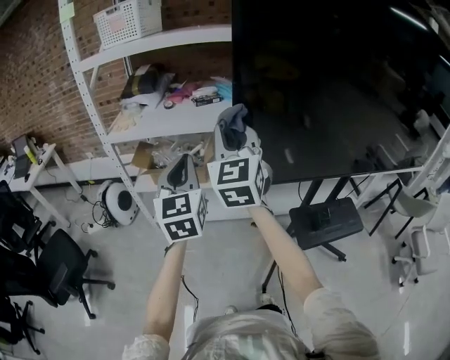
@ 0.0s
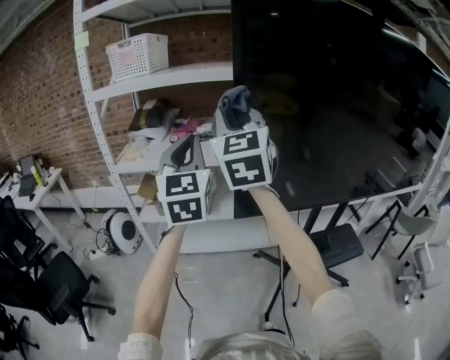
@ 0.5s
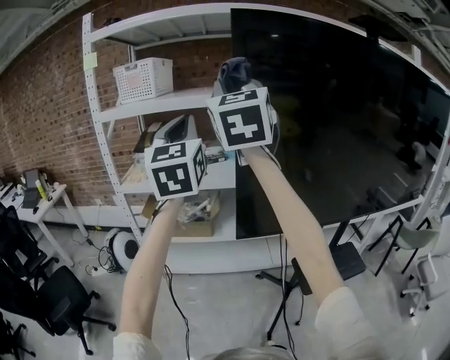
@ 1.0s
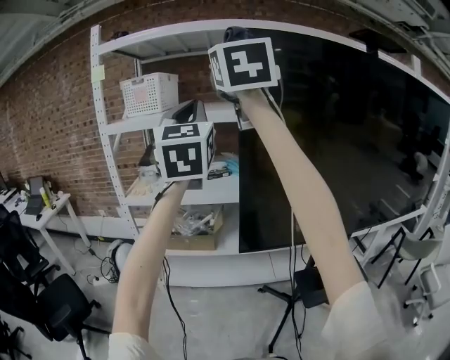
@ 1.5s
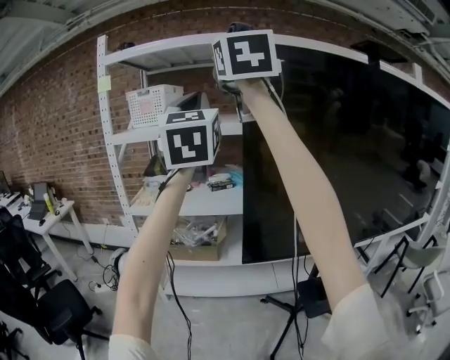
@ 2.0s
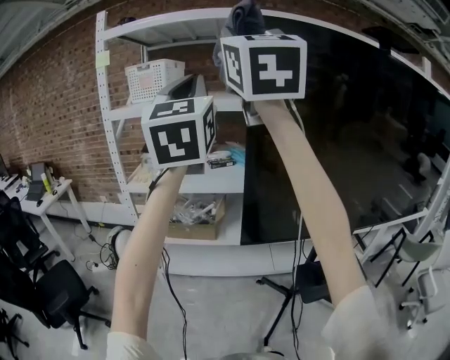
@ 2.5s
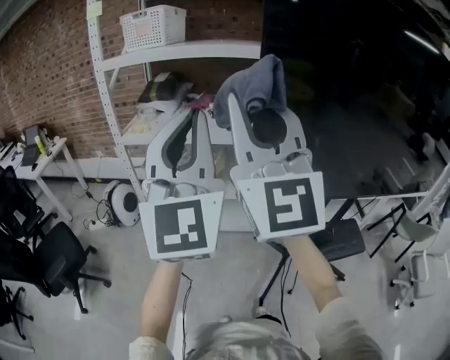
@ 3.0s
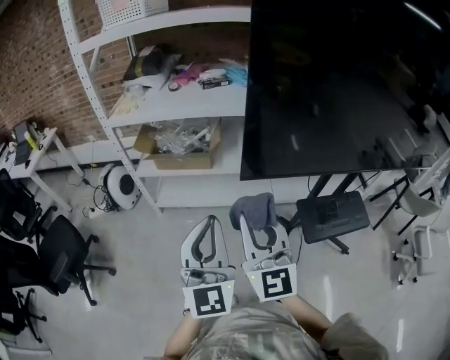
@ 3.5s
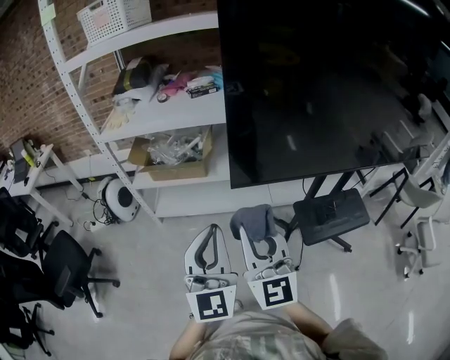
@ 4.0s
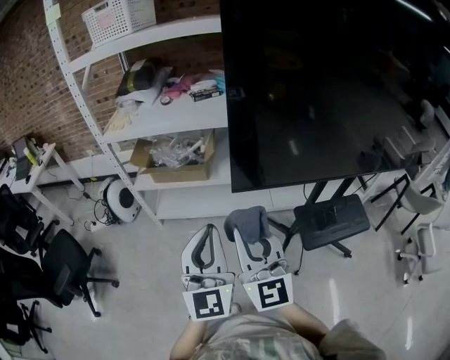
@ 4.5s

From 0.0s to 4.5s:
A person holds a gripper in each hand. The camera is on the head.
From 0.0s to 2.0s: Both grippers move upward, roughly 40 cm. The left gripper changes its angle by some 20 degrees.
From 2.0s to 4.5s: Both grippers move downward, approximately 50 cm.

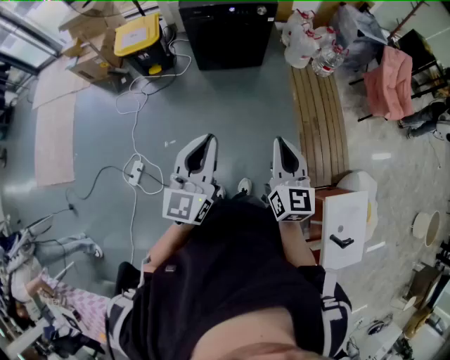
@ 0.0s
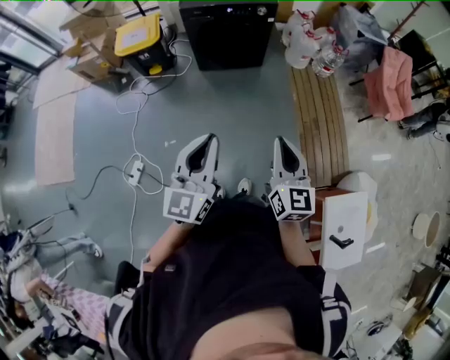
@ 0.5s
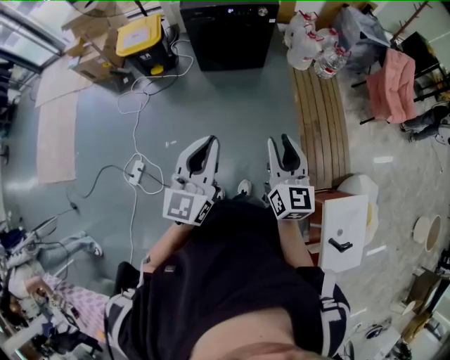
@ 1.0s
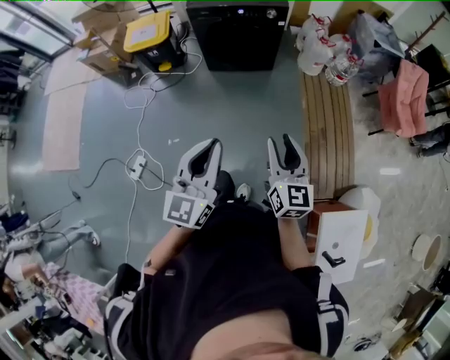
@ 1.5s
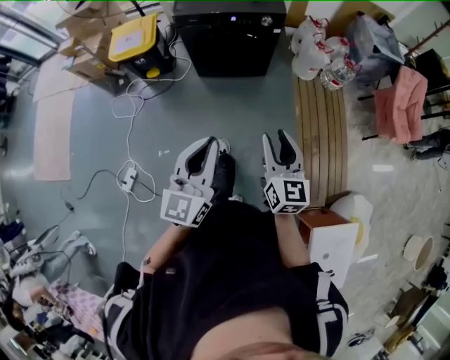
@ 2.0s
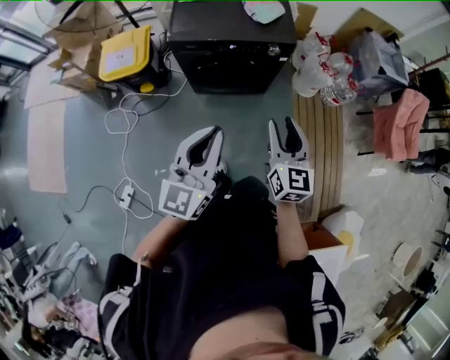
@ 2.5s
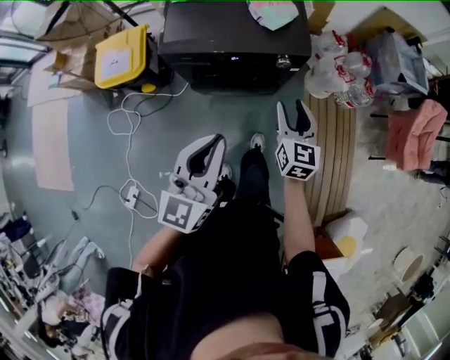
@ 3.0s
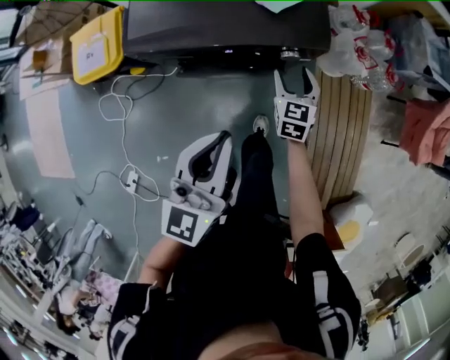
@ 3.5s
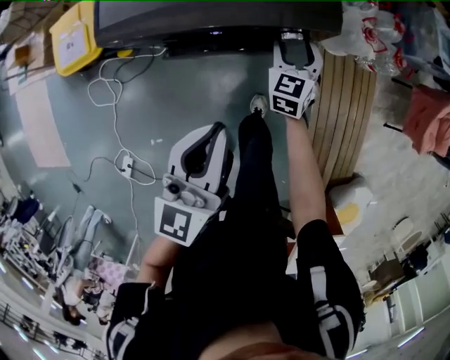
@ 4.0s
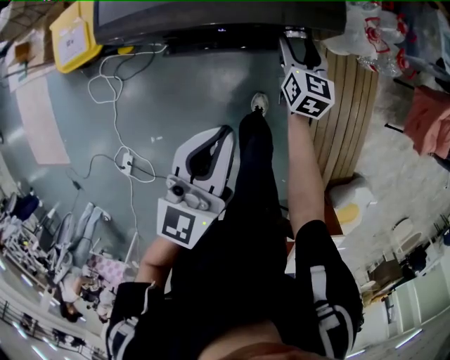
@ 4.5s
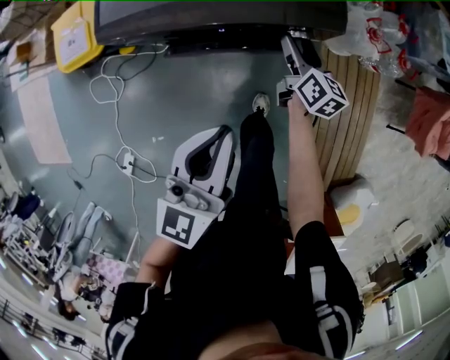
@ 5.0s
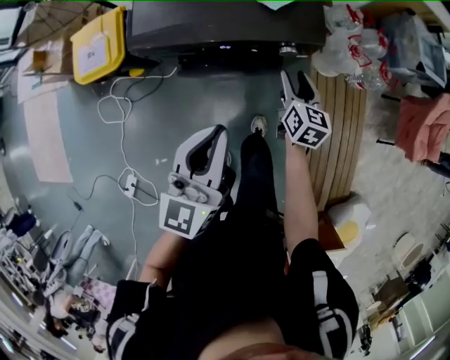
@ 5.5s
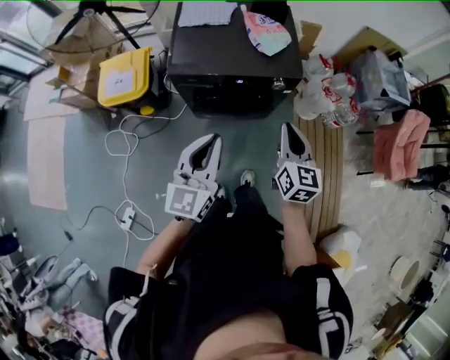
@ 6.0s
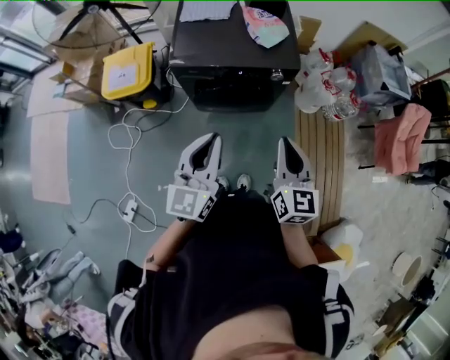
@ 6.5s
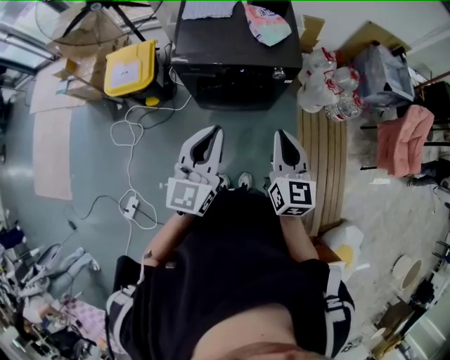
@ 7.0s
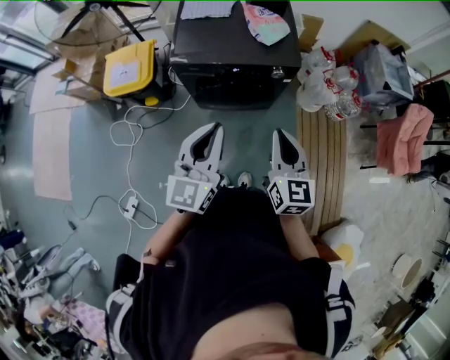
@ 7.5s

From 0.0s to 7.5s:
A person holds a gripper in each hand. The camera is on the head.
From 0.0s to 2.0s: Both grippers travel together forward, some 20 cm. The right gripper opens.
From 2.0s to 4.0s: Both grippers are carried forward, some 60 cm. The right gripper travels downward by some 35 cm, swivels some 30 degrees, and opens.
From 4.0s to 5.5s: The grippers both shift upward and backward by about 10 cm. The right gripper swivels about 30 degrees.
From 5.5s to 7.5s: The right gripper heads upward and backward, covering approximately 40 cm, rotates approximately 20 degrees, and closes its fingers. The left gripper heads backward and upward, covering roughly 20 cm.

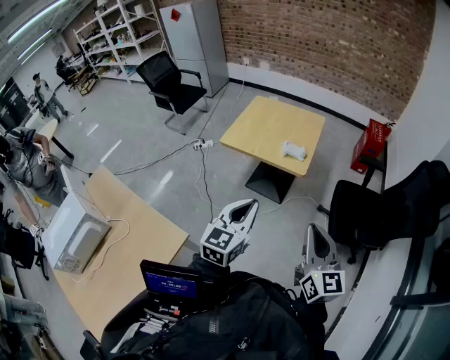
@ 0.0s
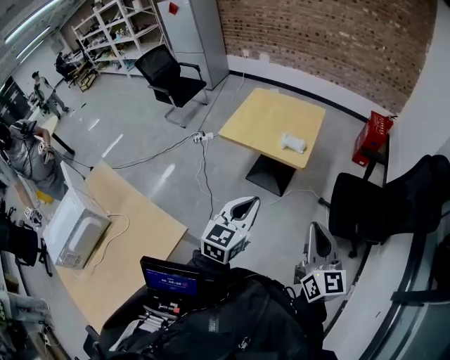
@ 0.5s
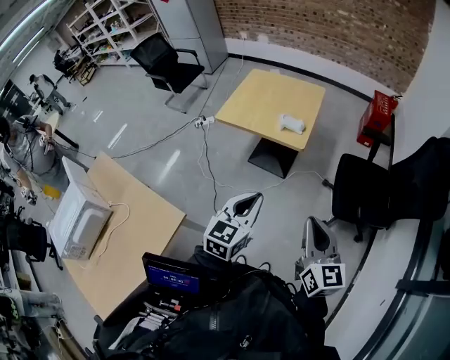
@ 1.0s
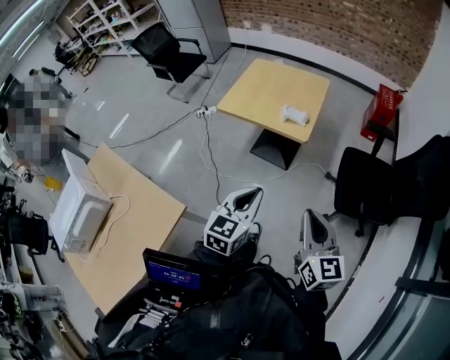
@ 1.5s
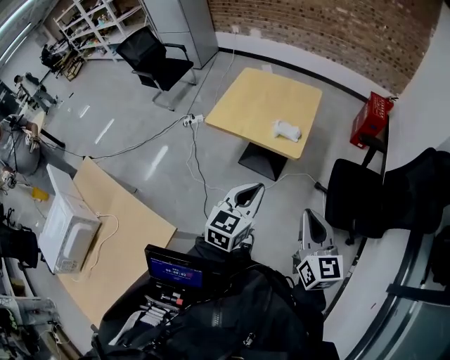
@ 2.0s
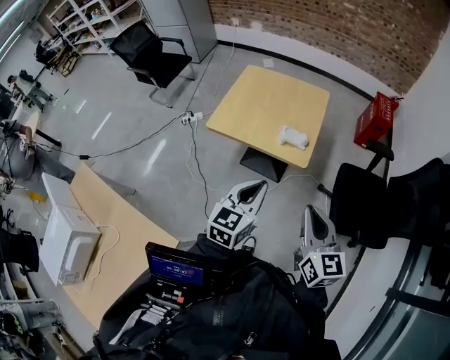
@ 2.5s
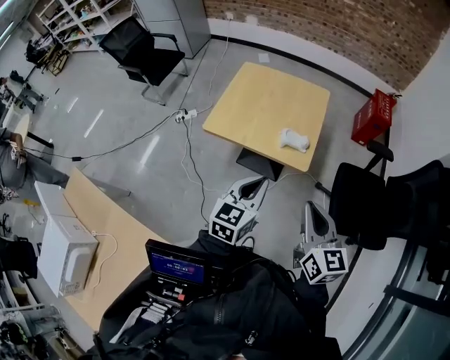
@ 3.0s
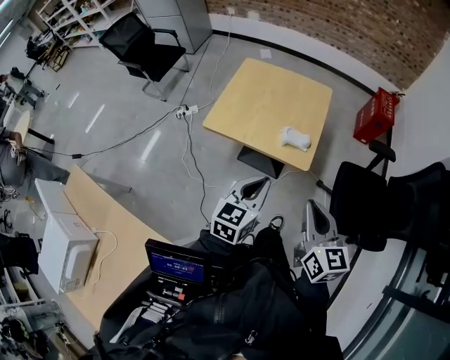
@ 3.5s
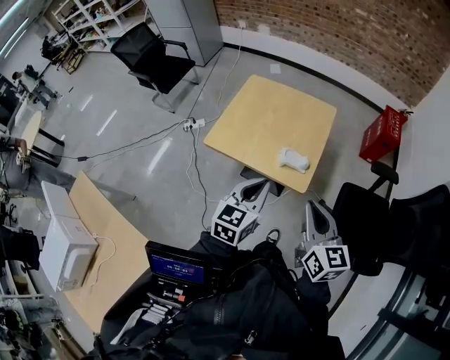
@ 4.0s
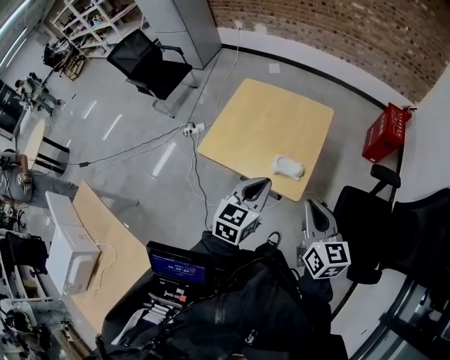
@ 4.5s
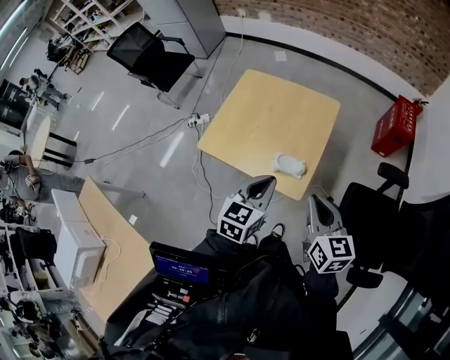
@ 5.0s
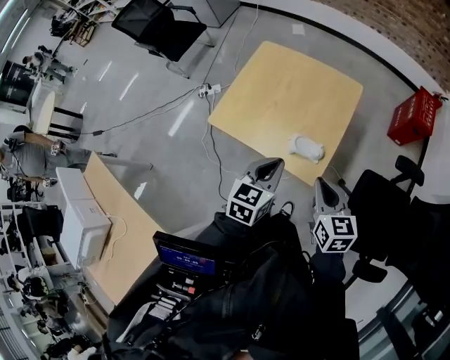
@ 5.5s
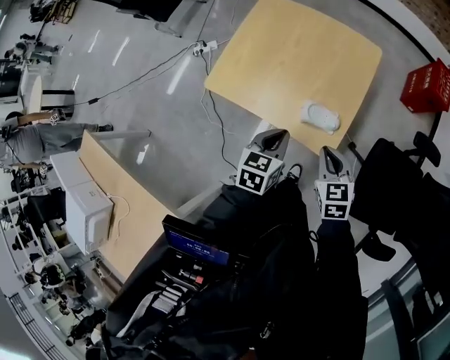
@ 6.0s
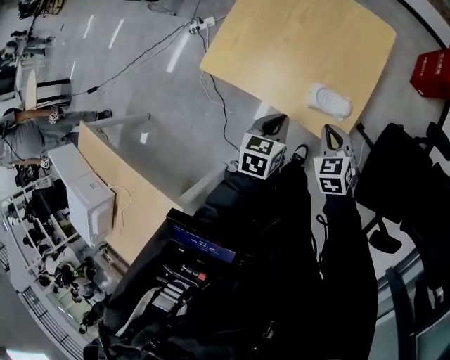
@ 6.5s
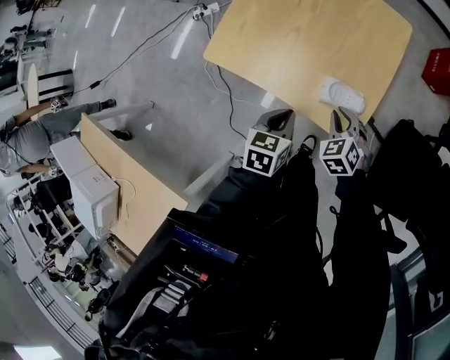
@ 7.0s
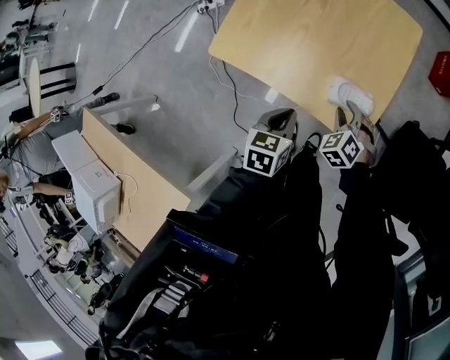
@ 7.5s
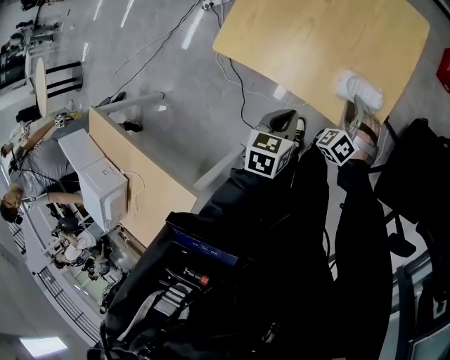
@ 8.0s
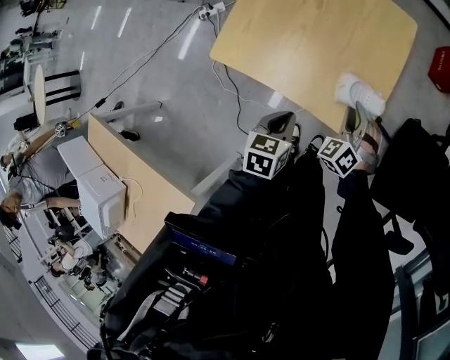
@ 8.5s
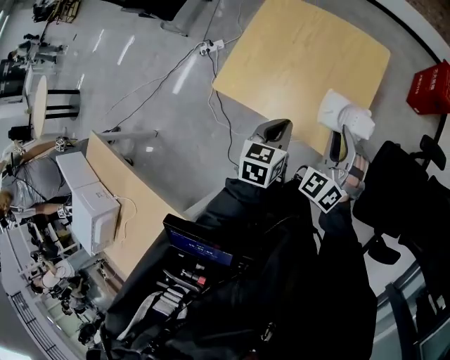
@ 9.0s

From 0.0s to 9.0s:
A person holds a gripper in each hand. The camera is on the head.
From 0.0s to 2.0s: The left gripper shifts about 10 cm forward and to the right. Meanwhile the right gripper travels forward by roughly 10 cm.
From 2.0s to 4.5s: The two grippers go about 30 cm forward.
From 4.5s to 7.0s: The left gripper heads downward, covering roughly 25 cm, and rotates roughly 30 degrees. Meanwhile the right gripper travels downward and forward by approximately 35 cm, and tilts its fingers some 40 degrees downward.
From 7.0s to 9.0s: The right gripper moves upward, some 20 cm, and angles its fingers upward, by roughly 30 degrees, while the left gripper moves upward, approximately 10 cm.

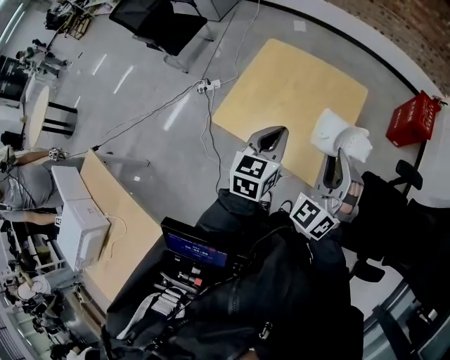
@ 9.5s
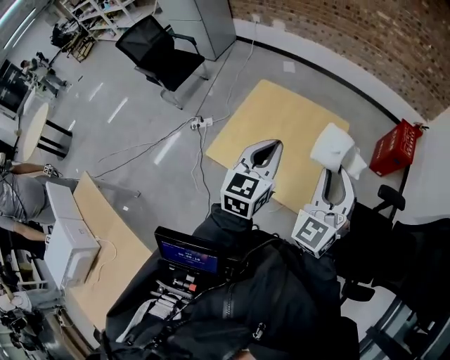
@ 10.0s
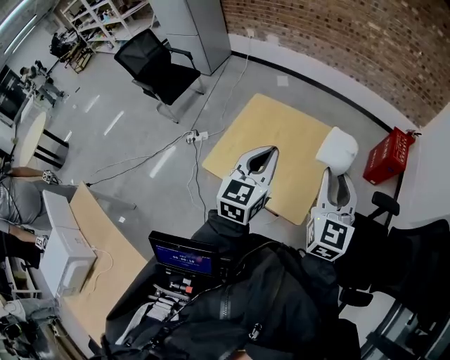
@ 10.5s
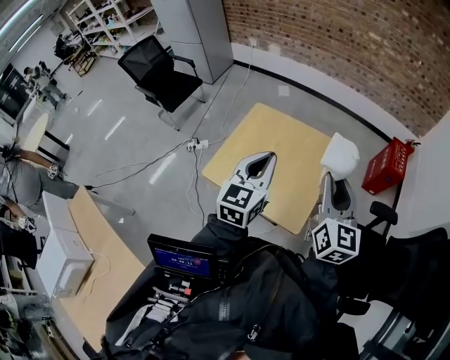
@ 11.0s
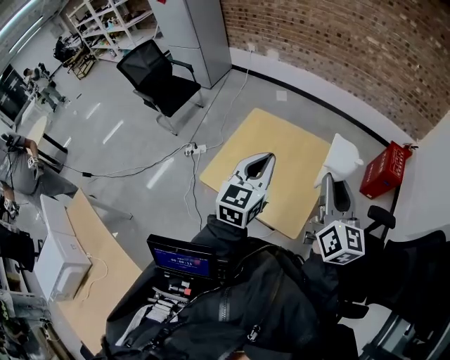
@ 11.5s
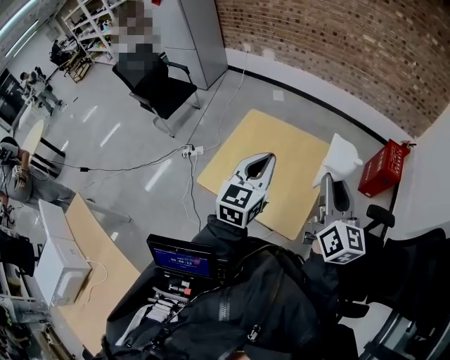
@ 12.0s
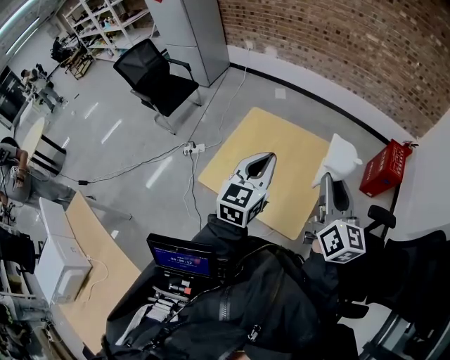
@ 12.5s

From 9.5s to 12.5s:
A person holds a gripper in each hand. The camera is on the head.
From 9.5s to 11.0s: The grippers both shift upward by about 10 cm. The right gripper rolls clockwise, seen from behind, by roughly 60 degrees.
From 11.0s to 12.5s: There are only small adjustments of the grippers.

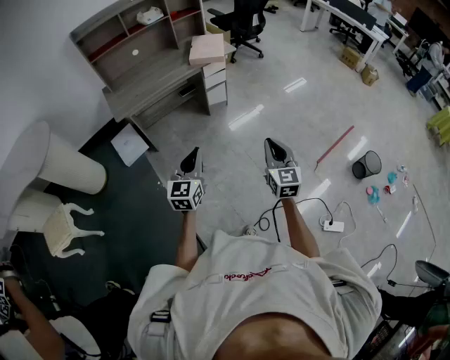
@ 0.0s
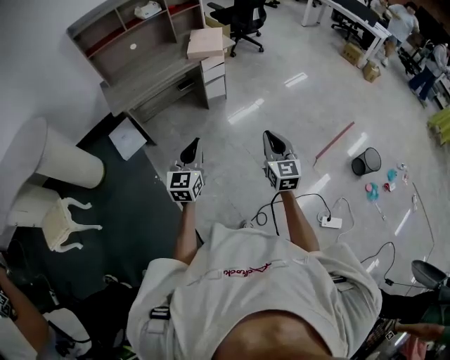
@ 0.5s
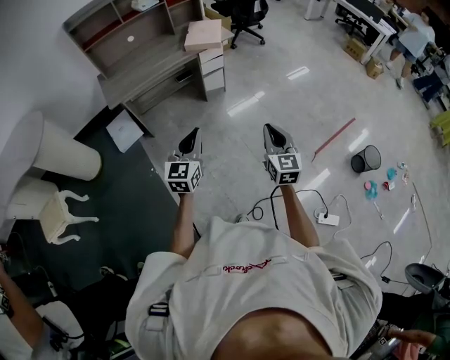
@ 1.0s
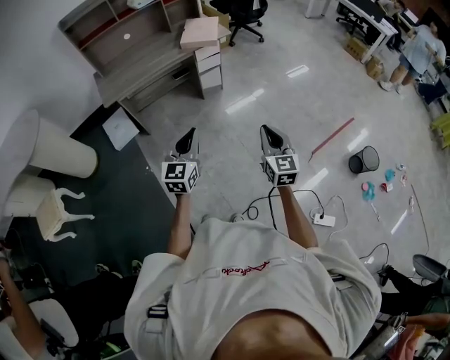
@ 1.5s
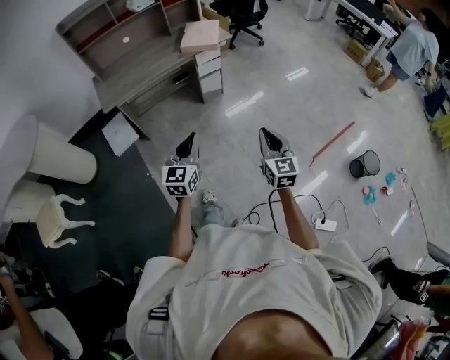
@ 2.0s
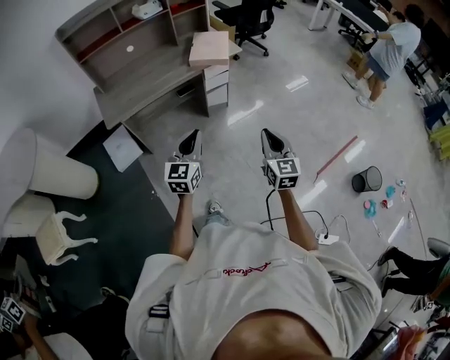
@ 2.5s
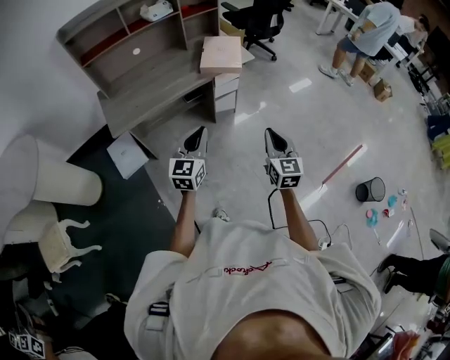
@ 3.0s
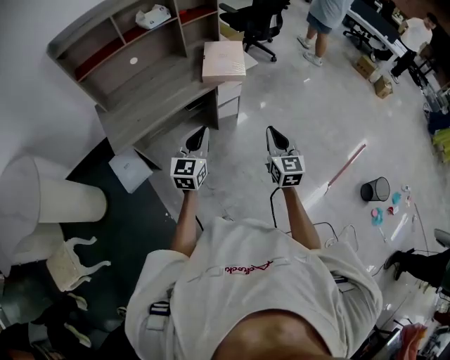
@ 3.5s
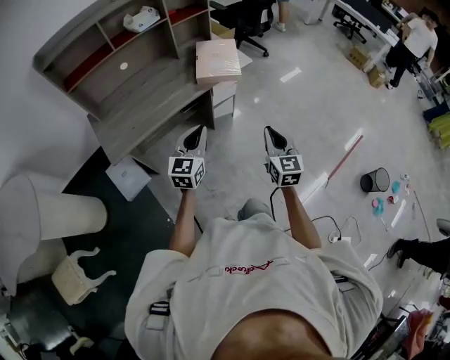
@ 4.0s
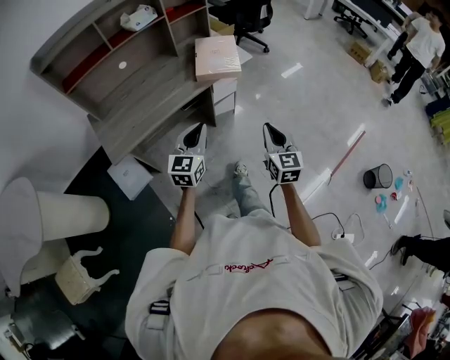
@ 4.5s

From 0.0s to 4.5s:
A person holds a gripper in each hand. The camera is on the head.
From 0.0s to 2.0s: The right gripper heads forward, covering some 5 cm. The left gripper is displaced forward and to the right by approximately 10 cm.
From 2.0s to 4.5s: The two grippers go roughly 35 cm forward and to the left.
